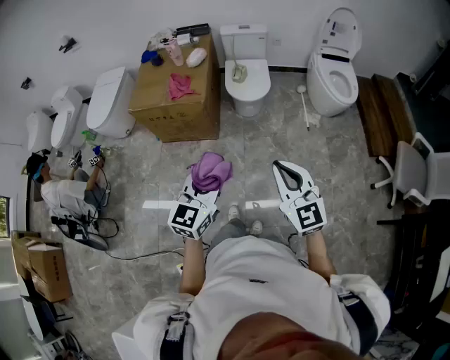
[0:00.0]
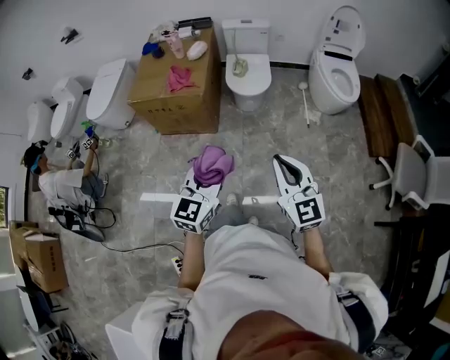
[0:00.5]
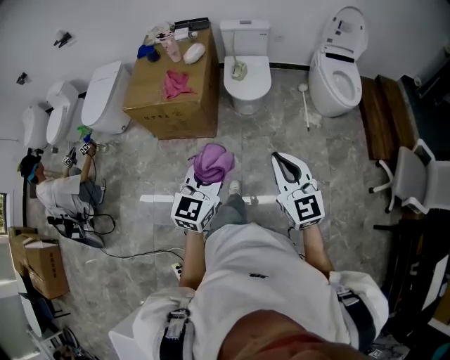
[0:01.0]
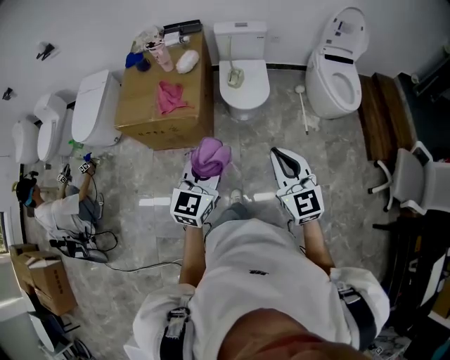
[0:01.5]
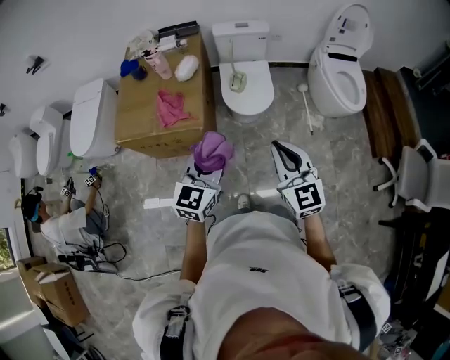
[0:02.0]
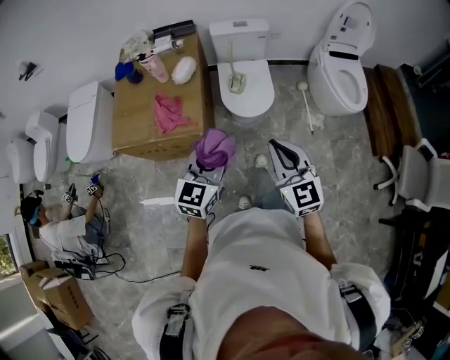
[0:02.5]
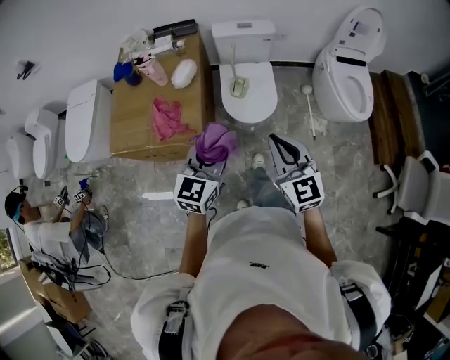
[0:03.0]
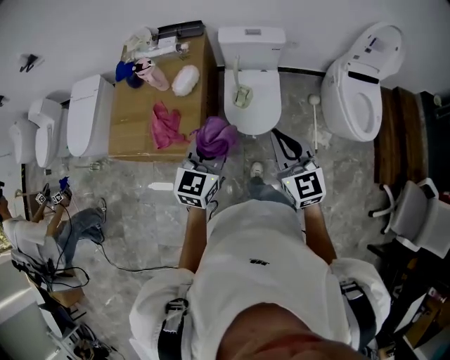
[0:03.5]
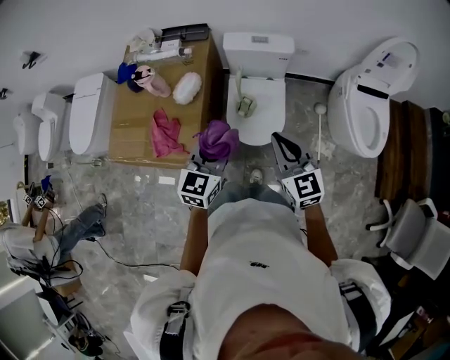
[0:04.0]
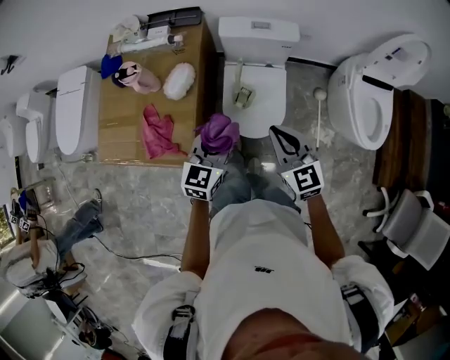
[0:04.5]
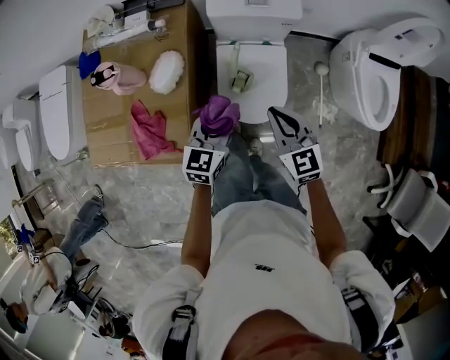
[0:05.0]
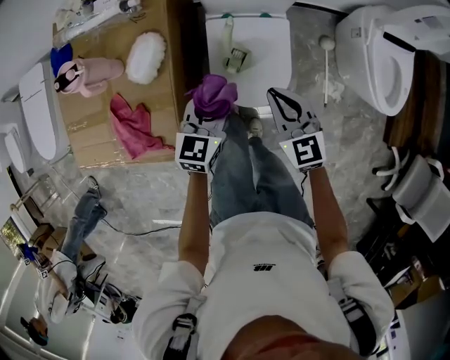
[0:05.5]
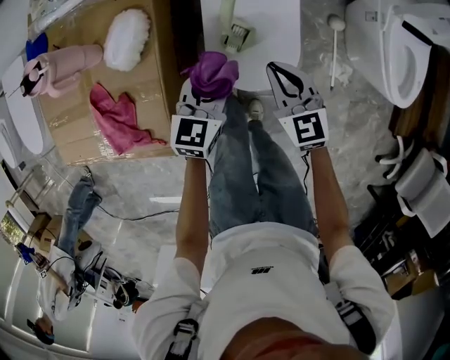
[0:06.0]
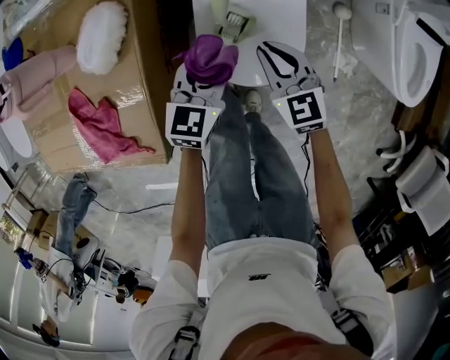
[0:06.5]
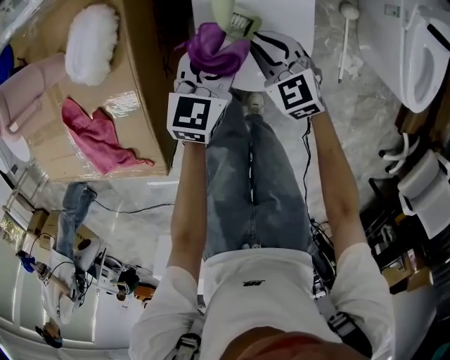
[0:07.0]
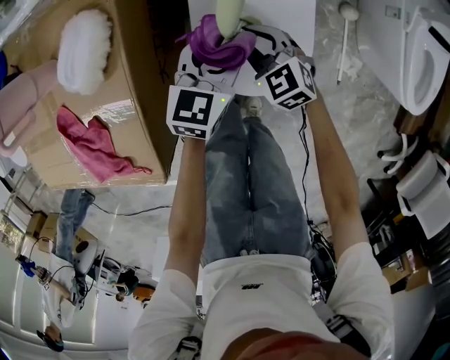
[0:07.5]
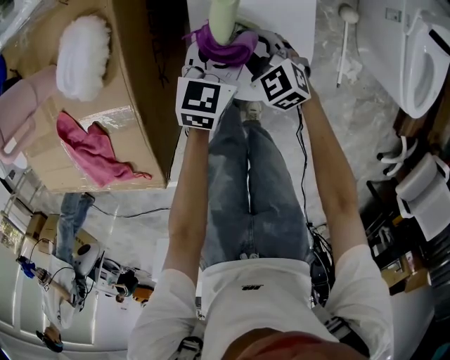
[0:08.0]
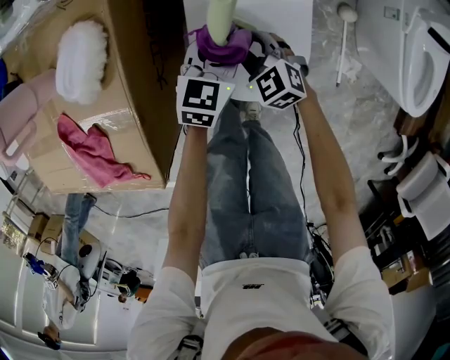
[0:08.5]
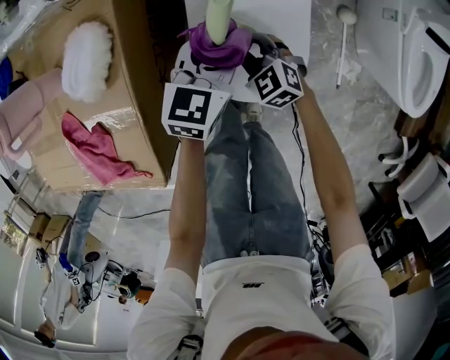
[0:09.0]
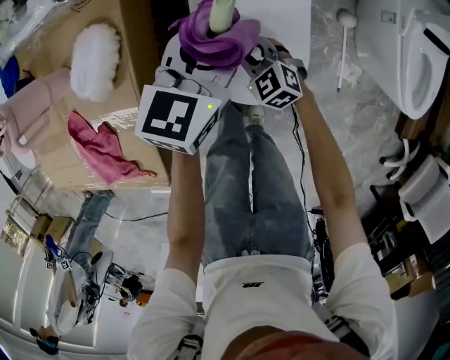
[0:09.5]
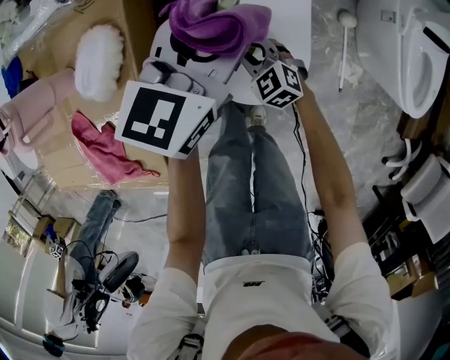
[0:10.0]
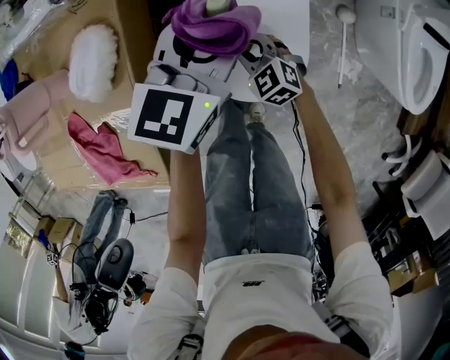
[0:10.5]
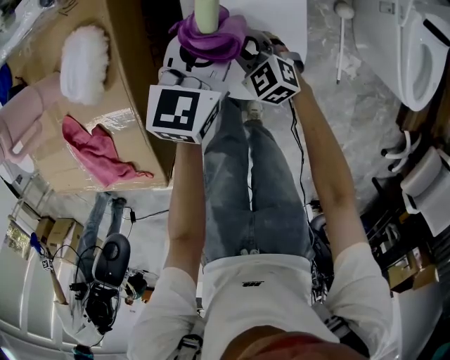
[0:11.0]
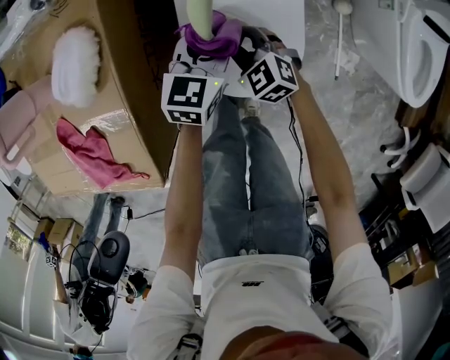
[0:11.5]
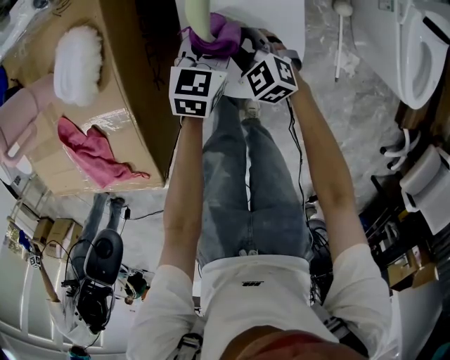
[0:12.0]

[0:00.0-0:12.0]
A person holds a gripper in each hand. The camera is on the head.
0:00.0 to 0:02.0: The grippers both shift forward by some 35 cm.
0:02.0 to 0:04.0: Both grippers travel together forward, about 35 cm.
0:04.0 to 0:06.0: The grippers both shift downward and forward by about 40 cm.
0:06.0 to 0:08.0: The right gripper goes some 20 cm downward, and swivels some 30 degrees, while the left gripper is displaced downward and forward by roughly 20 cm, and opens.
0:08.0 to 0:10.0: The left gripper travels upward by some 20 cm.
0:10.0 to 0:12.0: The left gripper shifts approximately 20 cm downward.

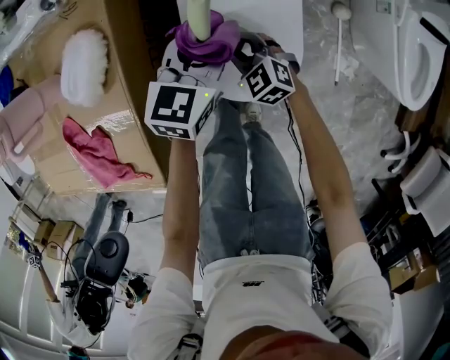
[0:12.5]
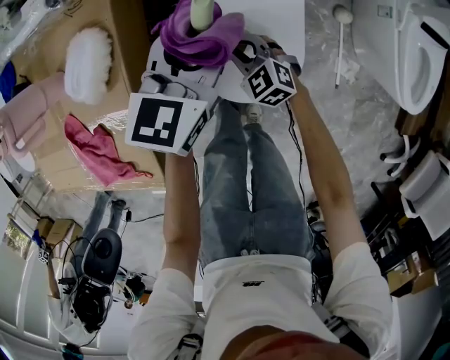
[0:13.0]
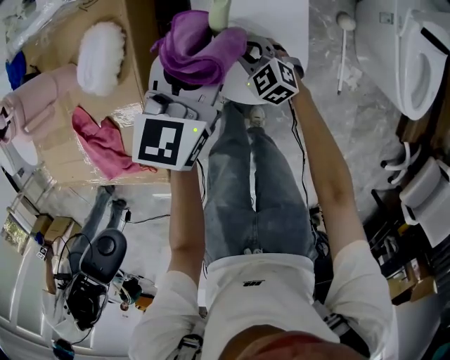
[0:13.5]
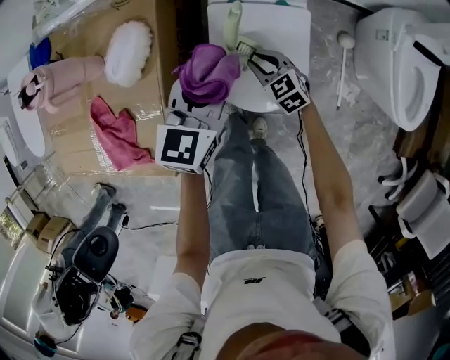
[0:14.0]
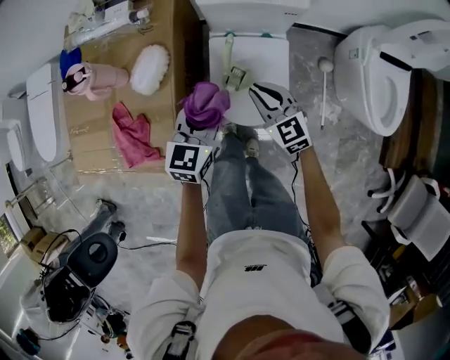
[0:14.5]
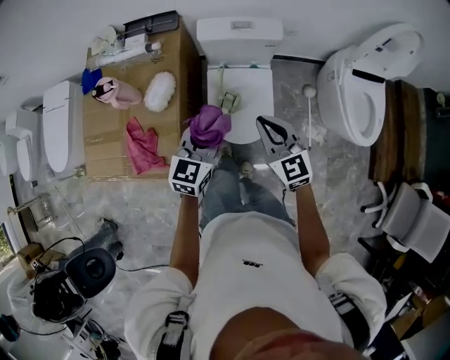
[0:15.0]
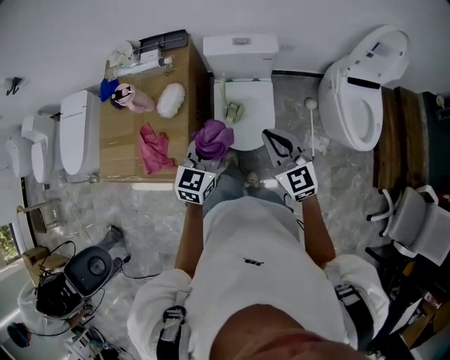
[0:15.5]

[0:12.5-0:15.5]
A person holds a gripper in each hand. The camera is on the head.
0:12.5 to 0:14.0: The left gripper shifts approximately 15 cm upward, to the left and backward.
0:14.0 to 0:15.5: The right gripper is displaced upward and backward by approximately 50 cm, and changes its angle by roughly 30 degrees, while the left gripper shifts approximately 30 cm upward and backward.

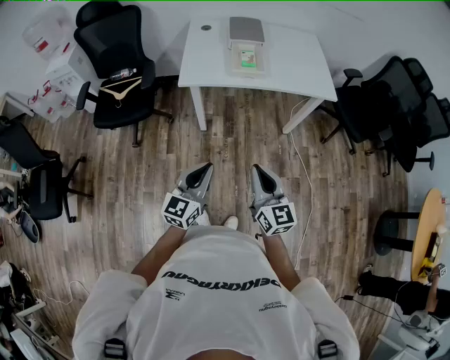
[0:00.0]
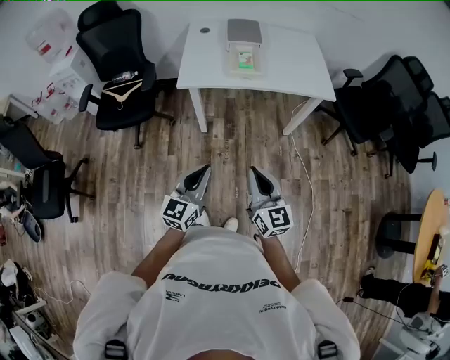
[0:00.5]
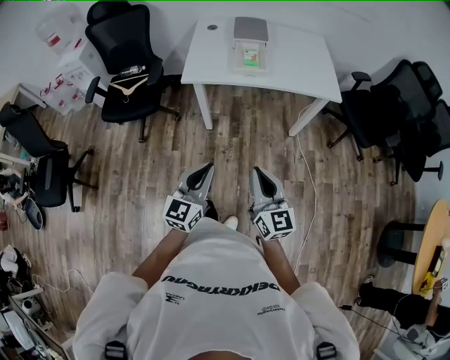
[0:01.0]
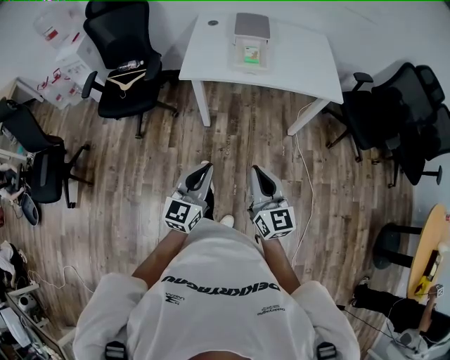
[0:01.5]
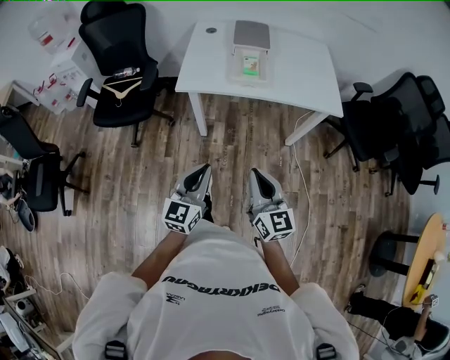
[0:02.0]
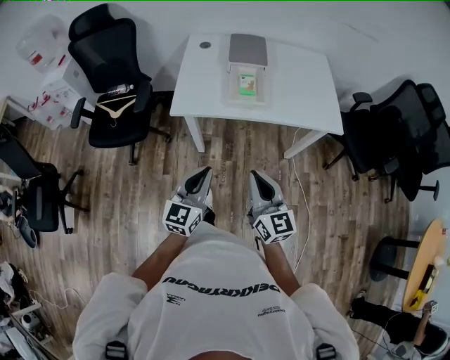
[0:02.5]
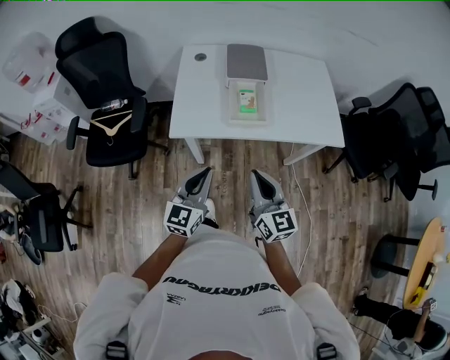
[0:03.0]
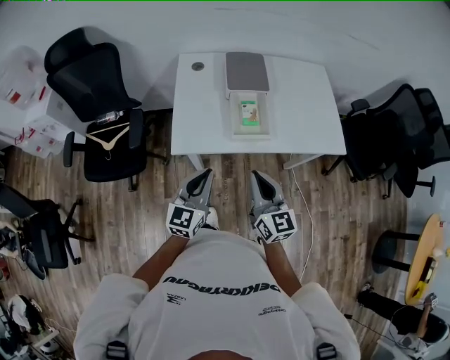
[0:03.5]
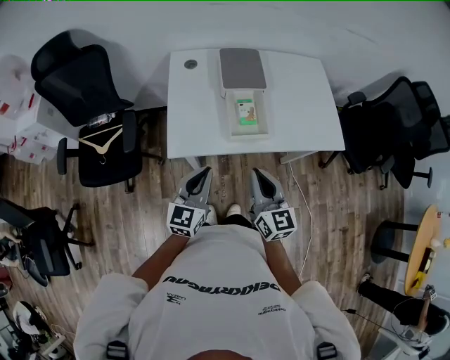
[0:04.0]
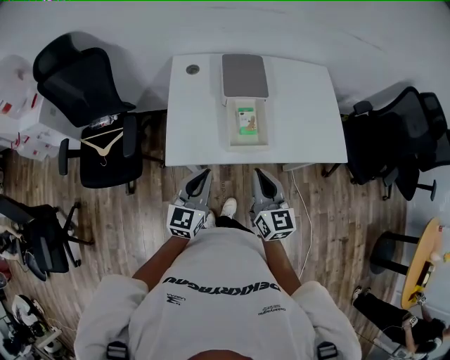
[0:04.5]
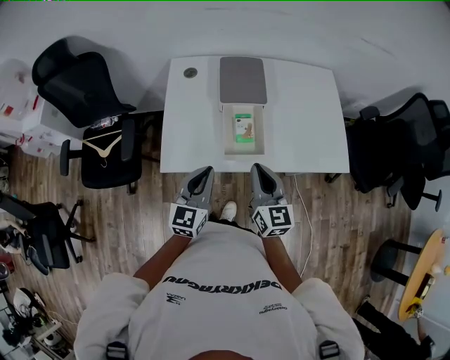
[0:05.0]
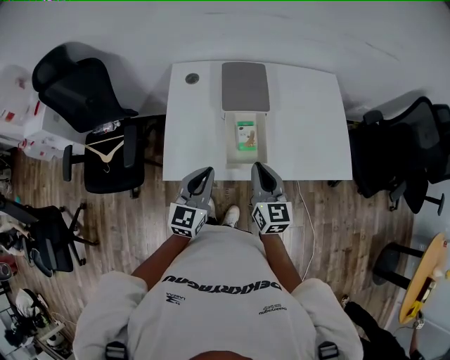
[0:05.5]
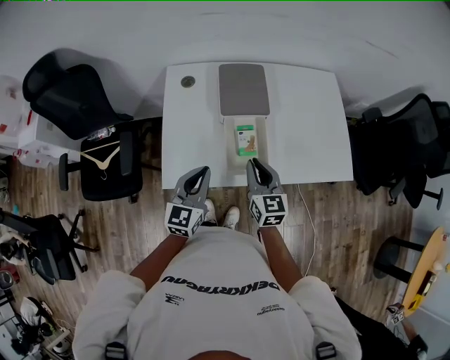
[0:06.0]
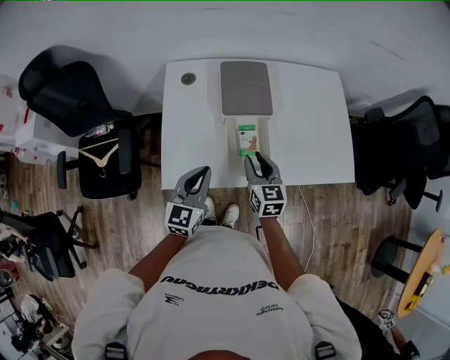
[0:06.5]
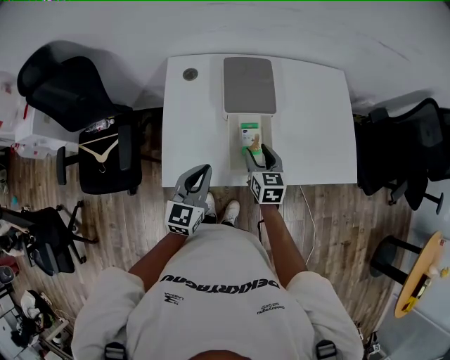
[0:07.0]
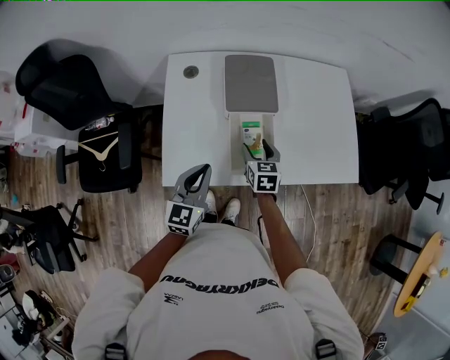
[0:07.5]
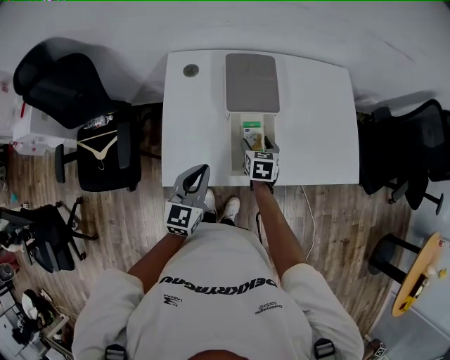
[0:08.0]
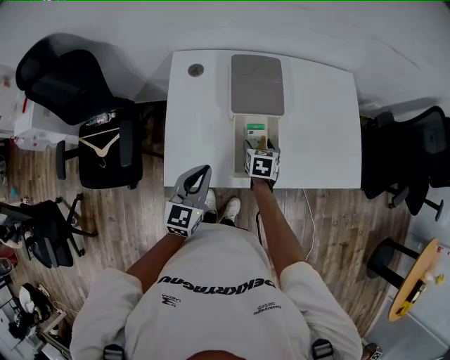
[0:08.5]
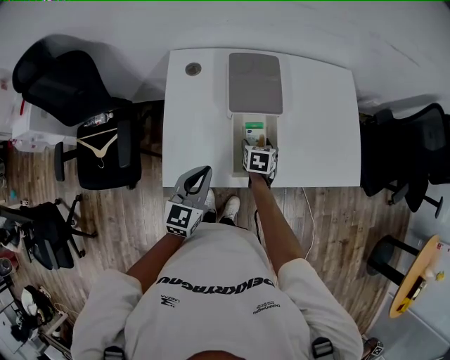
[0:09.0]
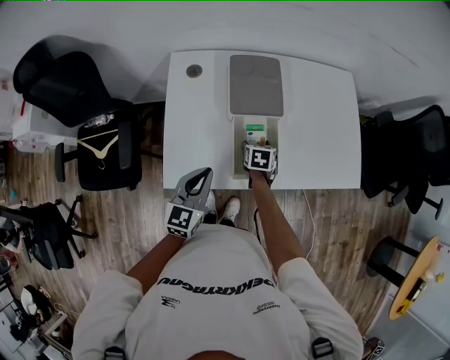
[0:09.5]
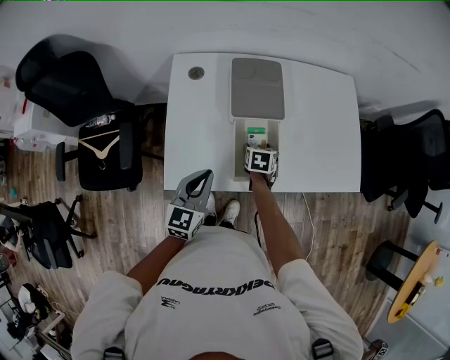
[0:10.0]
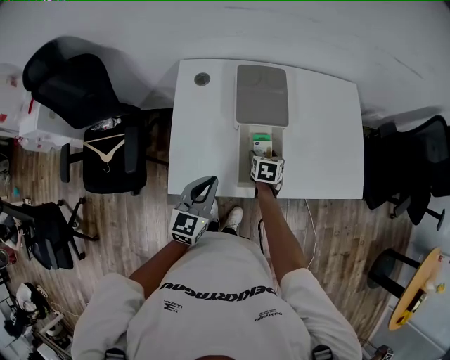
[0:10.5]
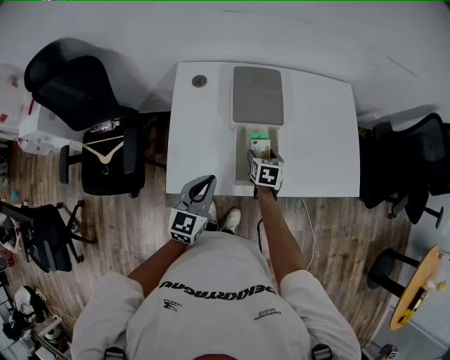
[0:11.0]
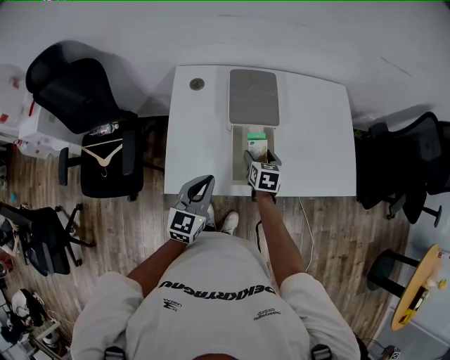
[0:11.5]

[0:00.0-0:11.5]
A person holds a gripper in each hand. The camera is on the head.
0:00.0 to 0:02.0: Both grippers travel together forward, approximately 5 cm.
0:02.0 to 0:04.0: The grippers both shift forward by approximately 30 cm.
0:04.0 to 0:06.0: The right gripper goes about 20 cm forward and downward. The left gripper shifts some 15 cm forward.
0:06.0 to 0:07.5: The right gripper goes about 15 cm downward and forward, turns by some 20 degrees, and opens up.
0:07.5 to 0:09.5: The right gripper heads downward, covering about 10 cm, and changes its angle by some 20 degrees.
0:09.5 to 0:11.5: The right gripper shifts some 5 cm upward.
